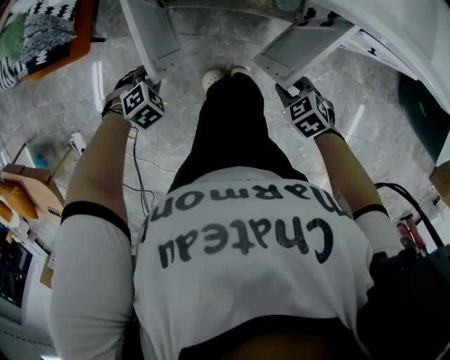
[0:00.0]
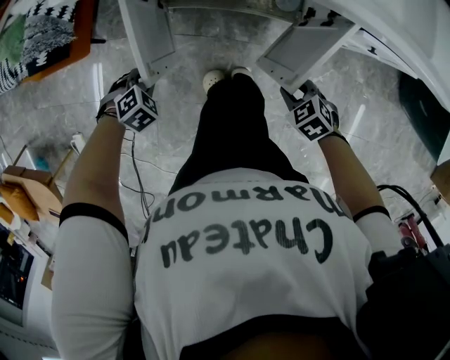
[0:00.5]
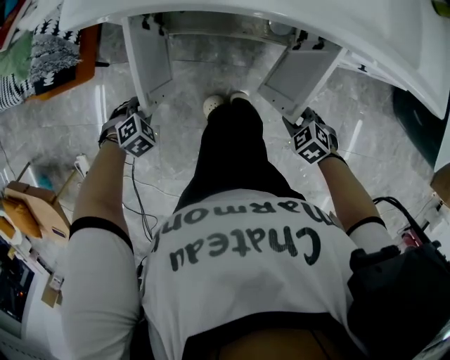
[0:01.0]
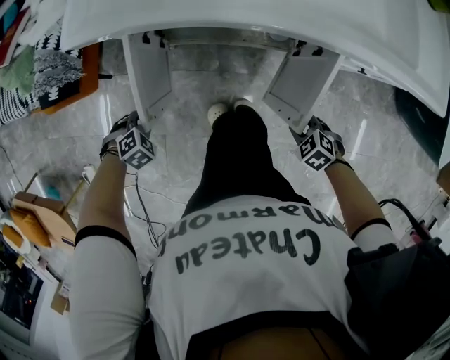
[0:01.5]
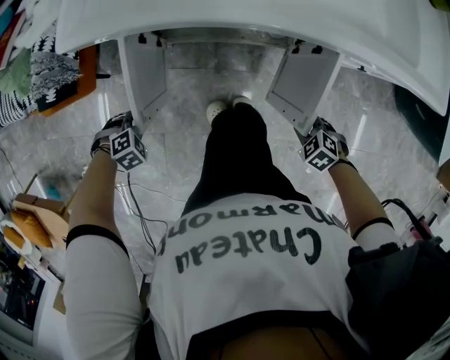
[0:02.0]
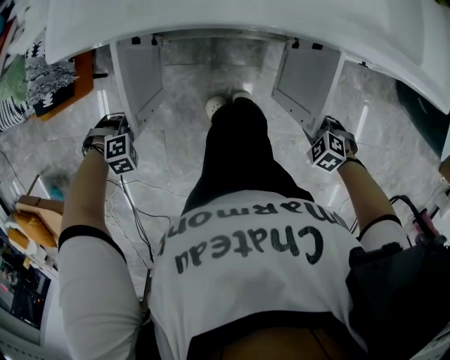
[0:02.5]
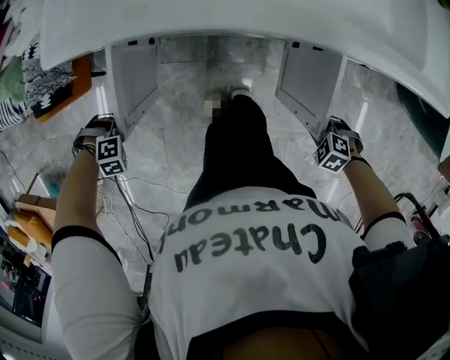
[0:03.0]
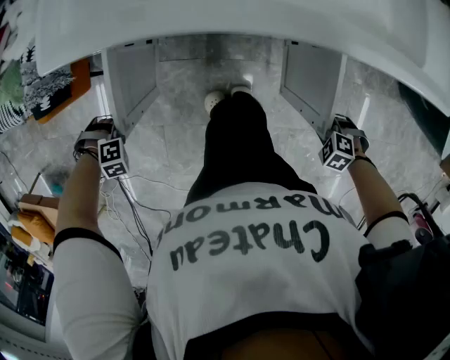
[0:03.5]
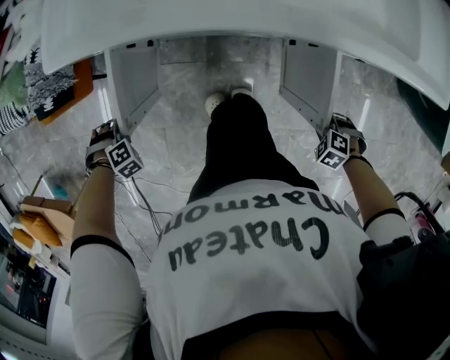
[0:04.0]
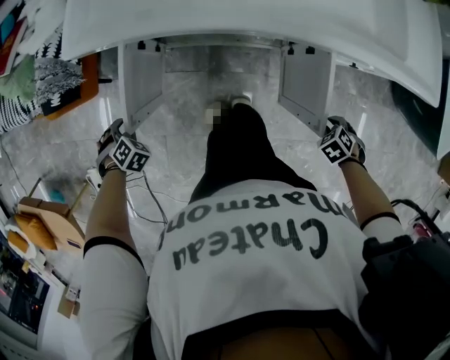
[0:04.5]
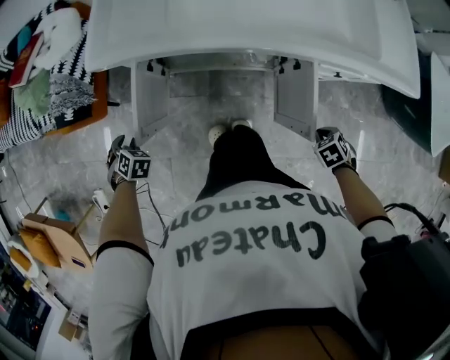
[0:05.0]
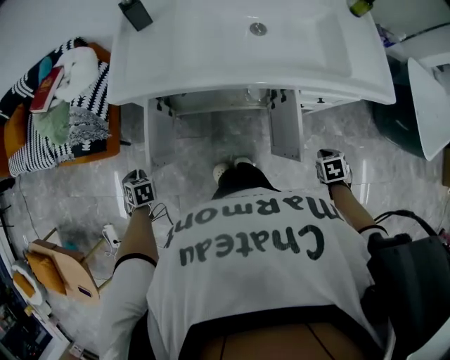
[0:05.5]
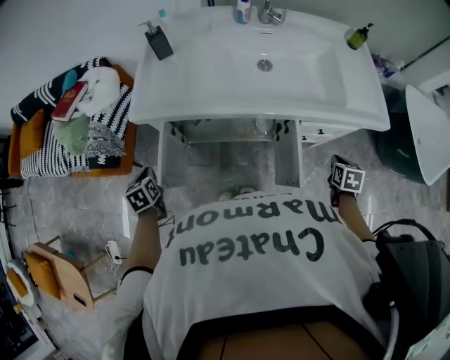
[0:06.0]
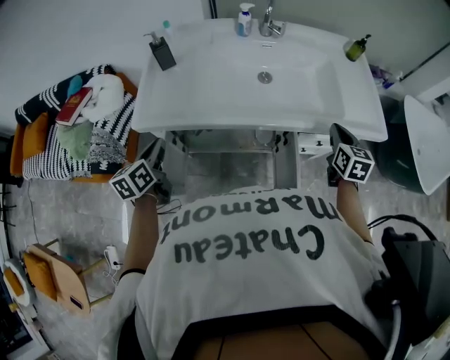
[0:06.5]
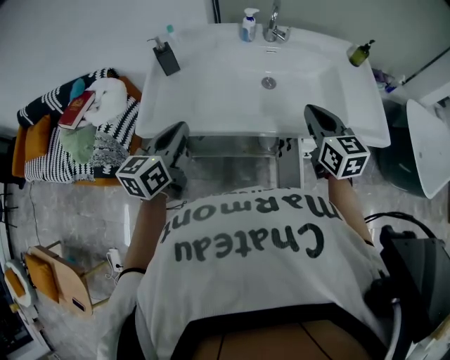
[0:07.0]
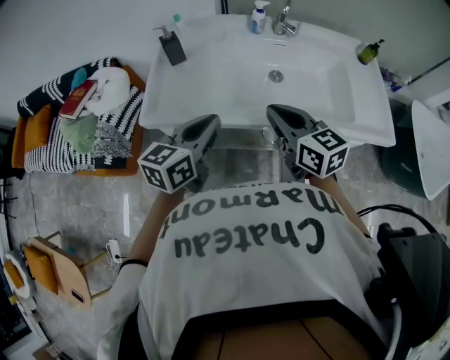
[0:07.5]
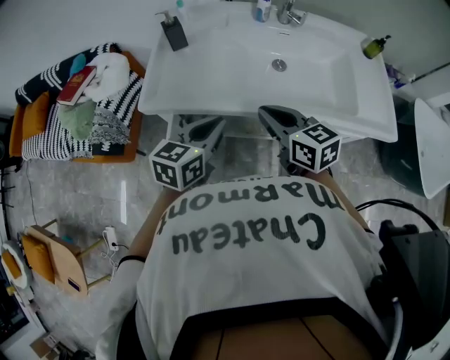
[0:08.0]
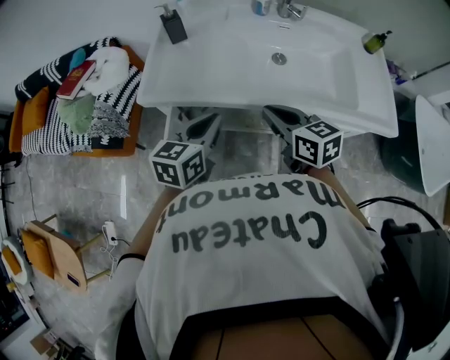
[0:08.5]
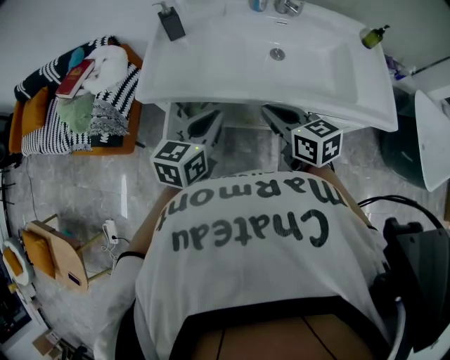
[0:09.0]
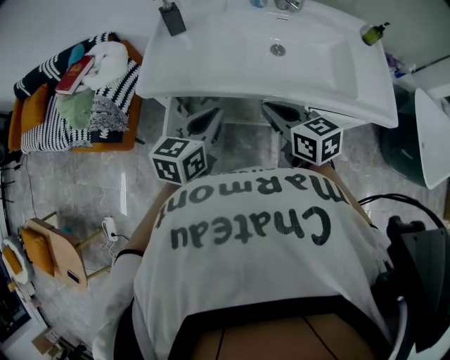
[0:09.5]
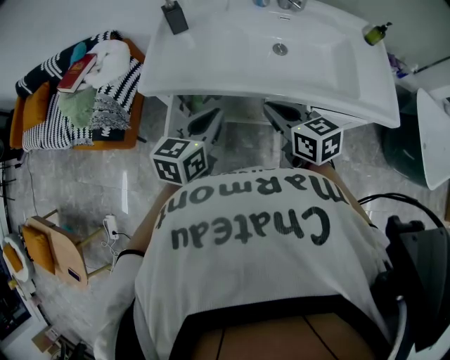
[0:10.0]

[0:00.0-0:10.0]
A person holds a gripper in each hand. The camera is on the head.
0:00.0 to 0:02.0: The right gripper shifts by about 5 cm, while the left gripper changes place by about 5 cm.
0:02.0 to 0:04.0: The right gripper ends up about 10 cm from where it was, while the left gripper shifts by approximately 5 cm, and opens its fingers.
0:04.0 to 0:06.0: Both grippers travel together upward, some 20 cm. The right gripper rolls clockwise, seen from behind, by about 80 degrees, while the left gripper rolls counterclockwise, seen from behind, by about 100 degrees, and closes.
0:06.0 to 0:08.0: The left gripper shifts some 30 cm to the right and upward, and turns by roughly 50 degrees. The right gripper is displaced to the left and upward by approximately 40 cm, and points its fingers some 30 degrees further upward.
0:08.0 to 0:10.0: The grippers make only small movements.

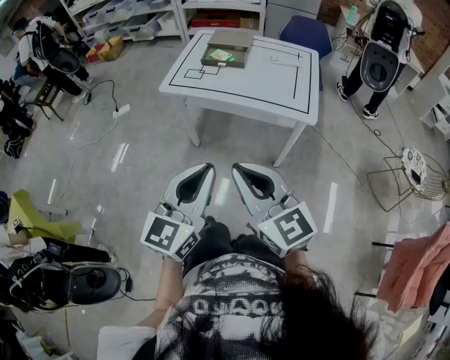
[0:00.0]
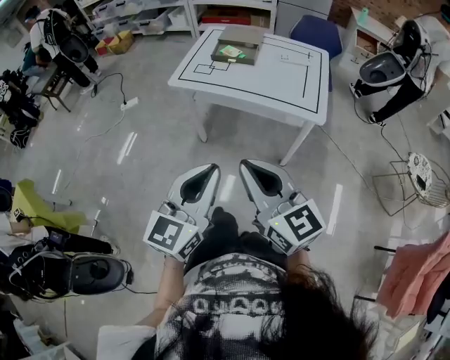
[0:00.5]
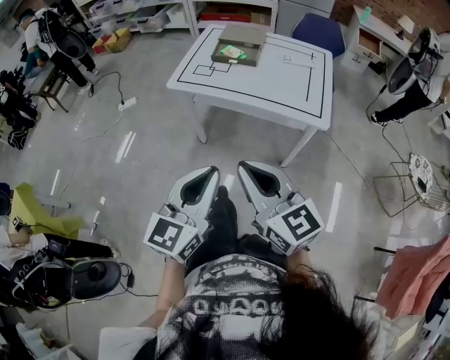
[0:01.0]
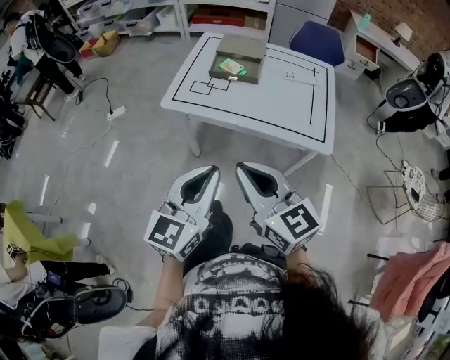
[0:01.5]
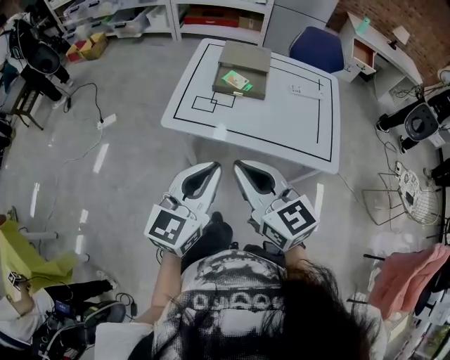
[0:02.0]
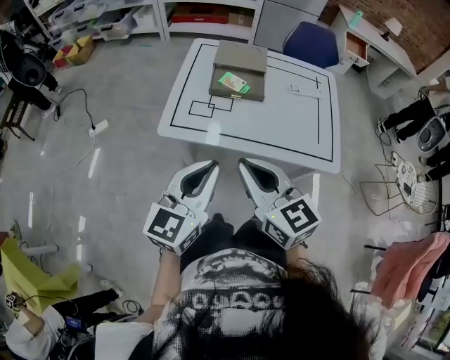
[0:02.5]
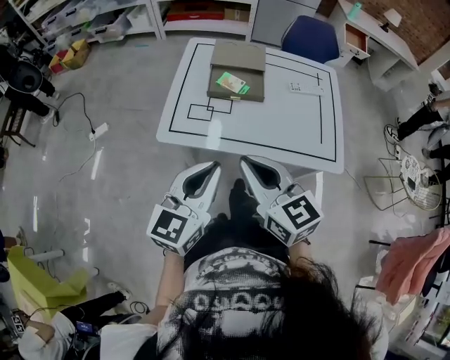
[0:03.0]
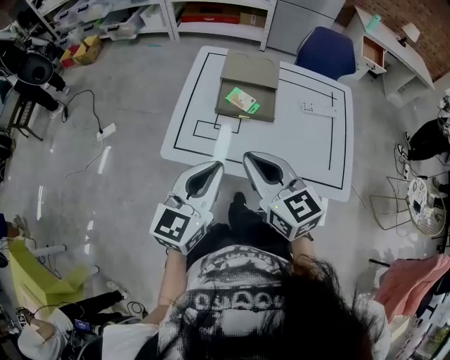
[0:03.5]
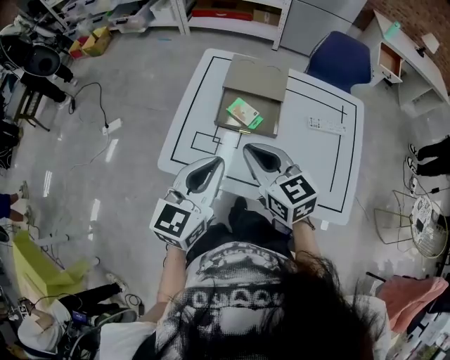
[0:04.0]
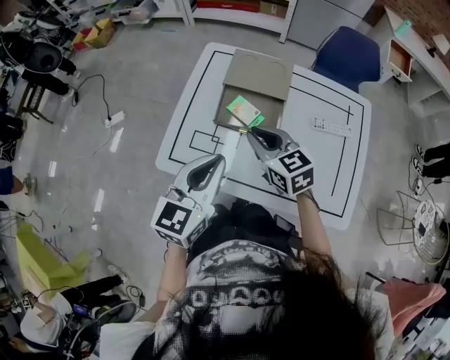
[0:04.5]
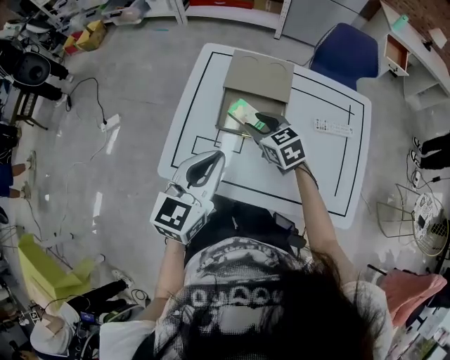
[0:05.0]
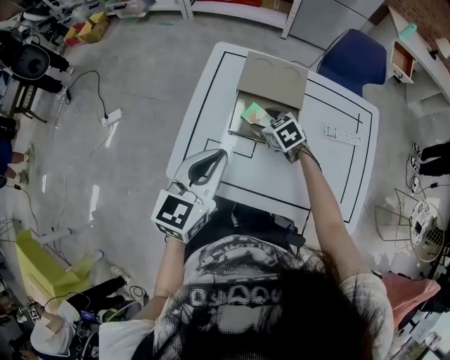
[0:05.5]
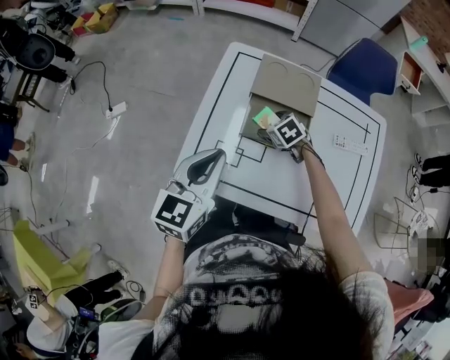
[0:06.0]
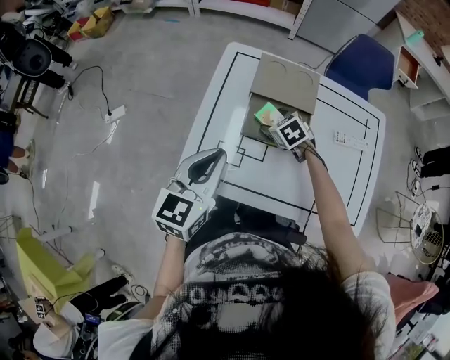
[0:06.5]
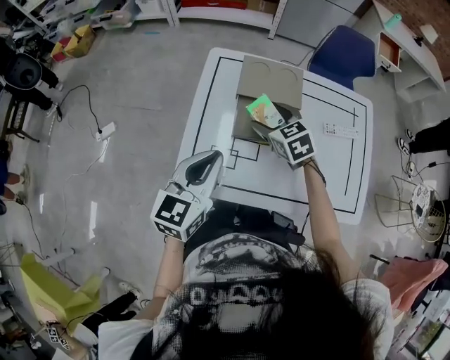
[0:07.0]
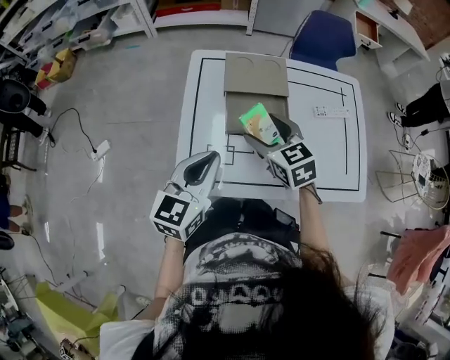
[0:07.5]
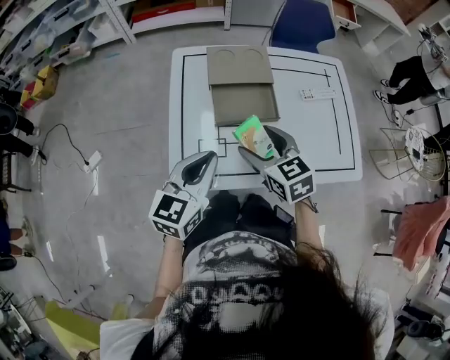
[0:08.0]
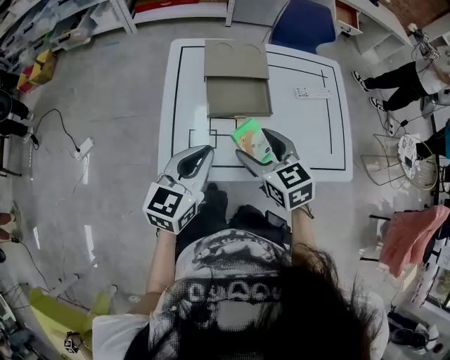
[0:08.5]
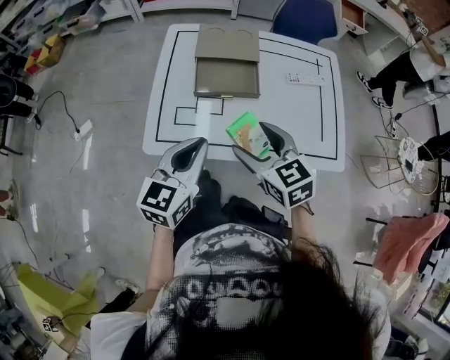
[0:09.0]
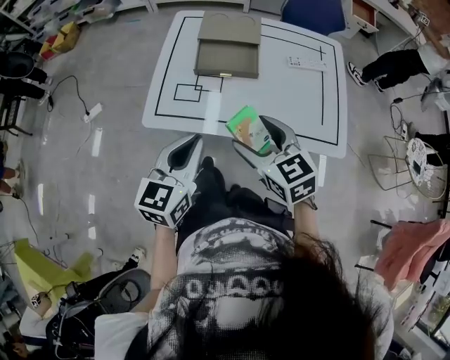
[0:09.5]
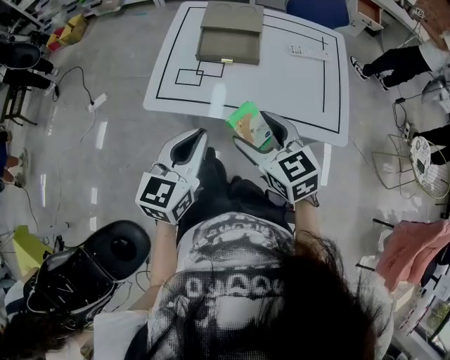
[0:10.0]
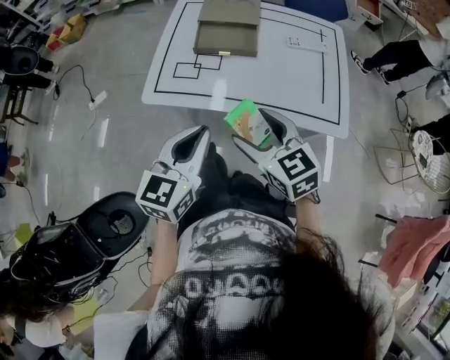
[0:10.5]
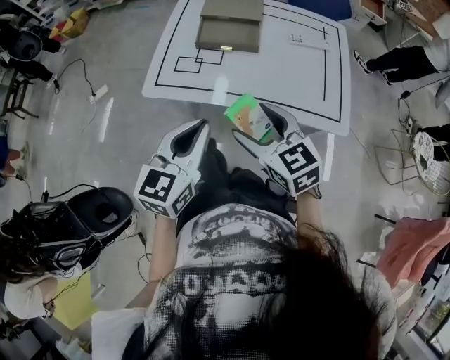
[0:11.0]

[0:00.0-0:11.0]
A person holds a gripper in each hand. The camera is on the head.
0:00.0 to 0:02.0: Both grippers move forward, roughly 30 cm.
0:02.0 to 0:03.5: Both grippers move forward, roughly 20 cm.
0:03.5 to 0:05.5: The left gripper goes roughly 20 cm forward, while the right gripper shifts about 40 cm forward and downward, points its fingers some 40 degrees further downward, and opens.
0:05.5 to 0:07.5: The right gripper heads upward and backward, covering roughly 15 cm, and swivels roughly 30 degrees.
0:07.5 to 0:09.0: The grippers both shift backward and to the right by about 15 cm.
0:09.0 to 0:11.0: Both grippers travel together backward, some 15 cm.

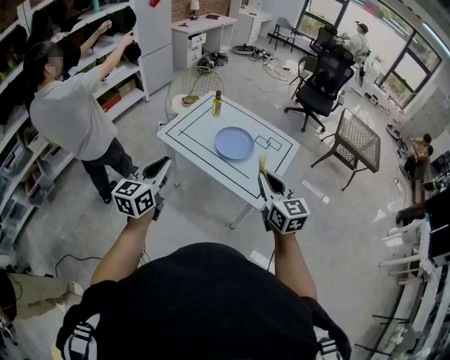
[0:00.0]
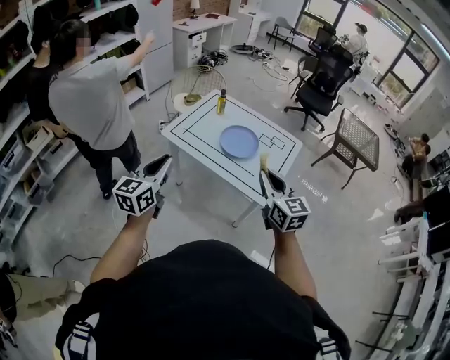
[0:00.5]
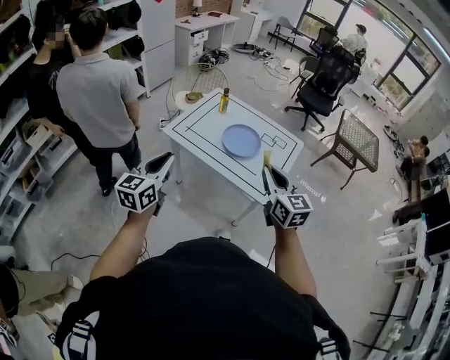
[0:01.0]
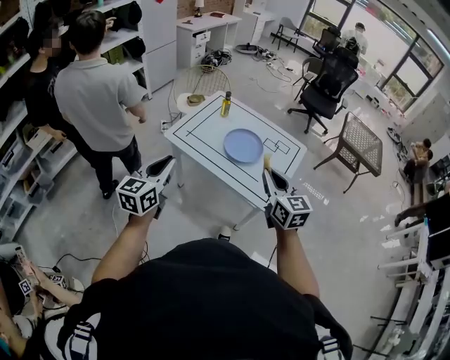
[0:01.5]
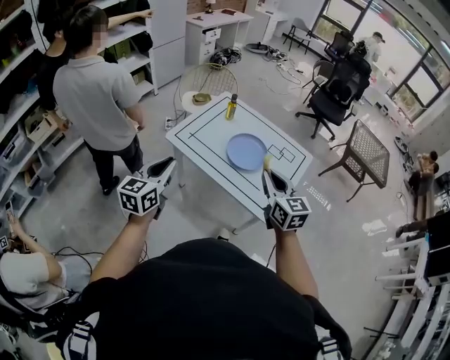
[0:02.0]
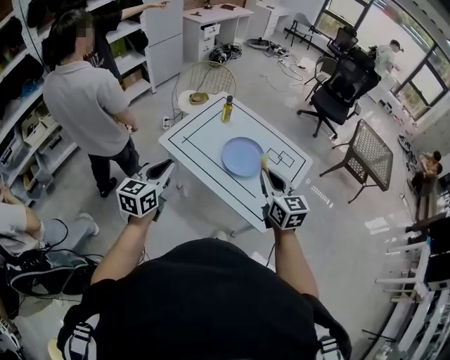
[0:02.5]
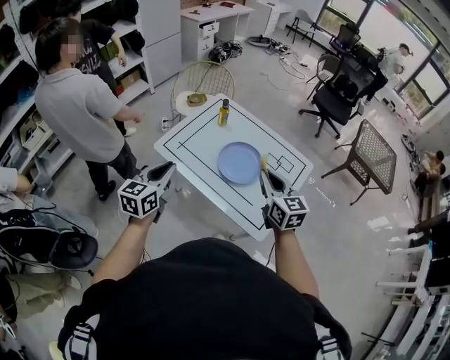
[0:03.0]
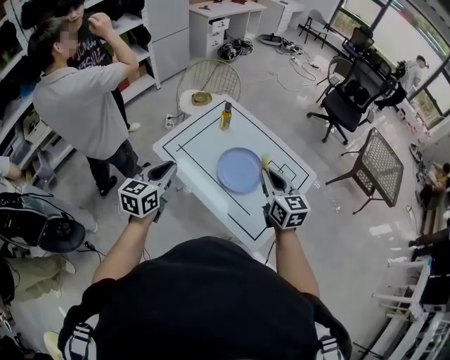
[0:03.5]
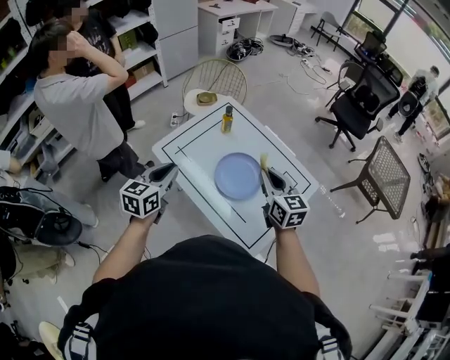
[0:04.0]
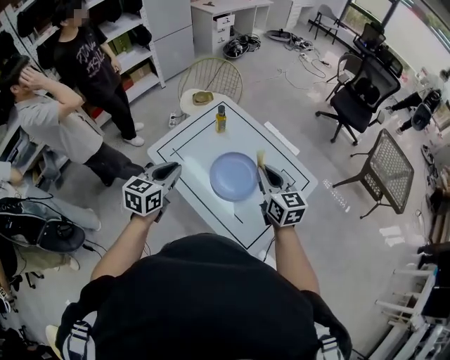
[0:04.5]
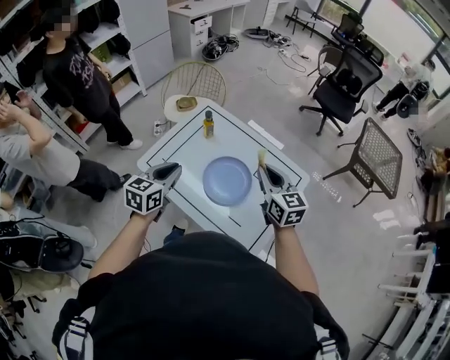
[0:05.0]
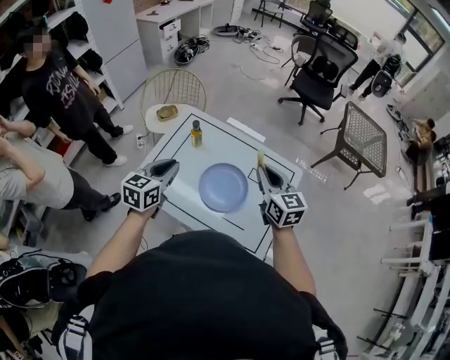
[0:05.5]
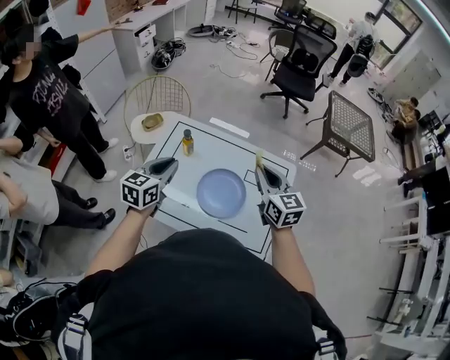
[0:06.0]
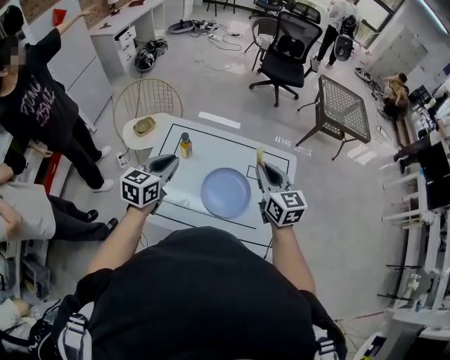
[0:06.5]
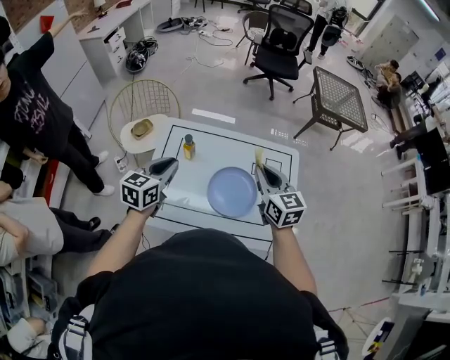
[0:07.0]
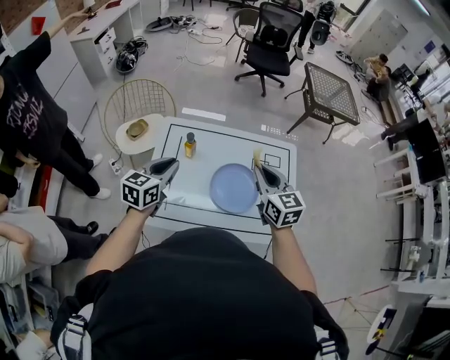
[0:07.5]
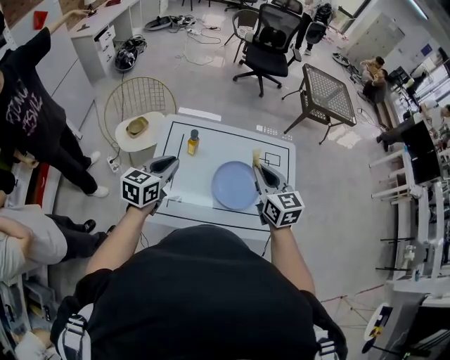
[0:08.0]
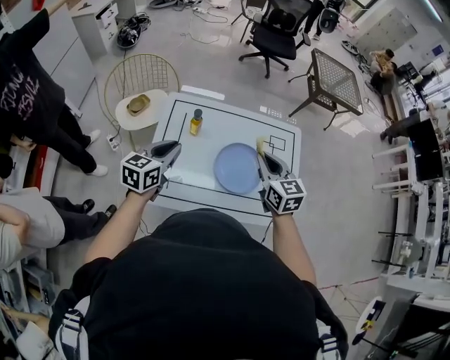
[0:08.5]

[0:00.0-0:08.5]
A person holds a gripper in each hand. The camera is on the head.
0:00.0 to 0:02.0: The grippers both shift forward by roughly 10 cm.
0:02.0 to 0:04.0: The left gripper travels forward and to the right by approximately 20 cm; the right gripper travels forward by approximately 25 cm.
0:04.0 to 0:06.5: The right gripper moves roughly 10 cm, and turns by approximately 30 degrees. The left gripper changes place by roughly 25 cm, and turns by some 40 degrees.
0:06.5 to 0:08.5: The grippers both shift to the left by some 5 cm.
